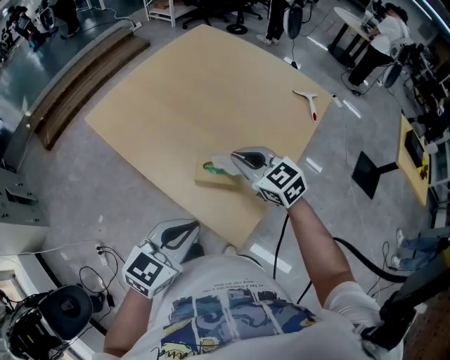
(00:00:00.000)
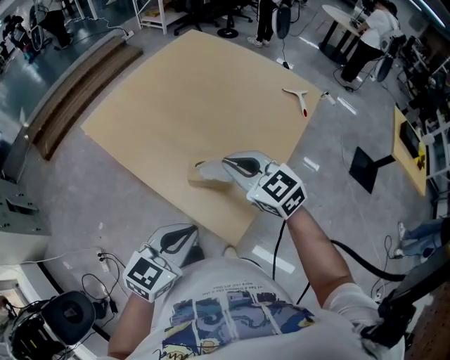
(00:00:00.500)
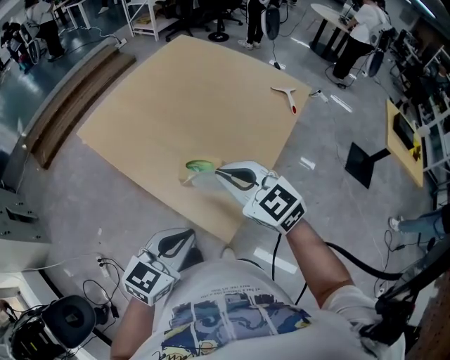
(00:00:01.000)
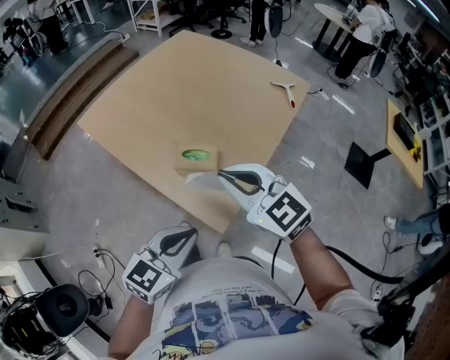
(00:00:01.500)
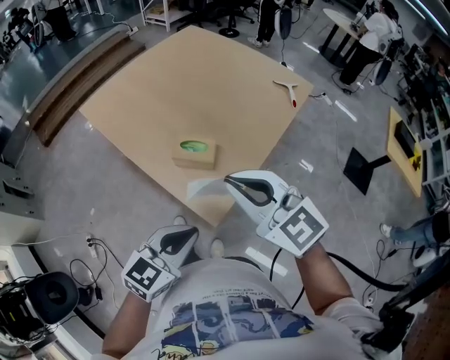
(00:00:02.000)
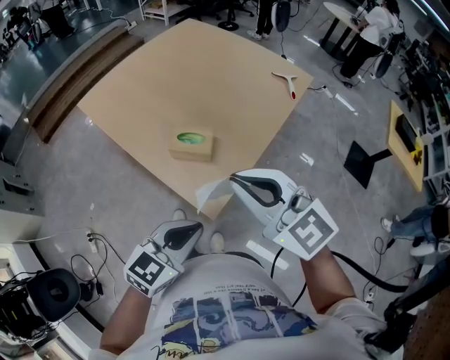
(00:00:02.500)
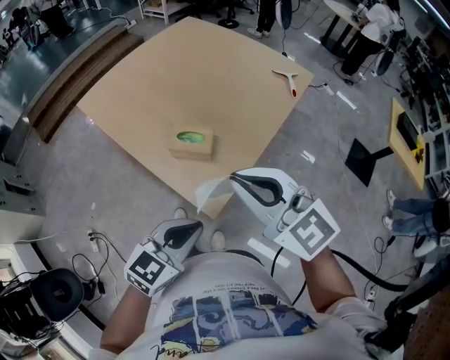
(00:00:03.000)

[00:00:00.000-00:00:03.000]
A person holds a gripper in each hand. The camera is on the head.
00:00:00.000 to 00:00:01.500: The right gripper goes some 20 cm backward and upward. Meanwhile the left gripper travels backward and to the right by about 10 cm.
00:00:01.500 to 00:00:03.000: The right gripper moves backward, roughly 5 cm.

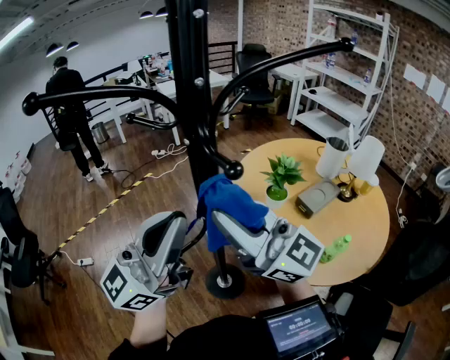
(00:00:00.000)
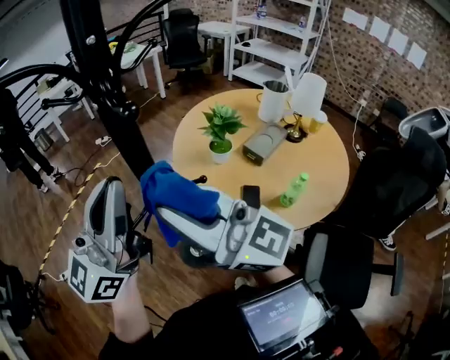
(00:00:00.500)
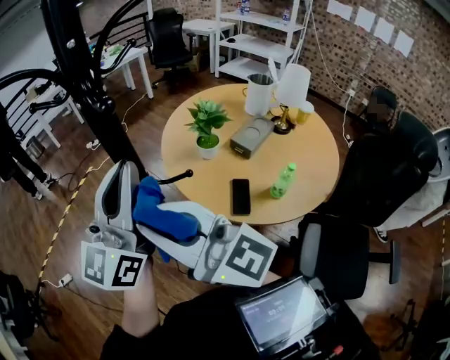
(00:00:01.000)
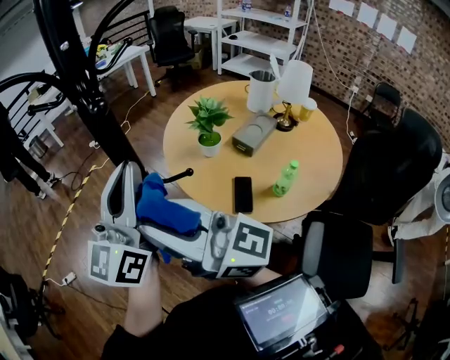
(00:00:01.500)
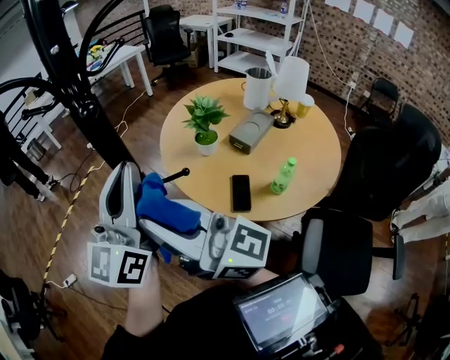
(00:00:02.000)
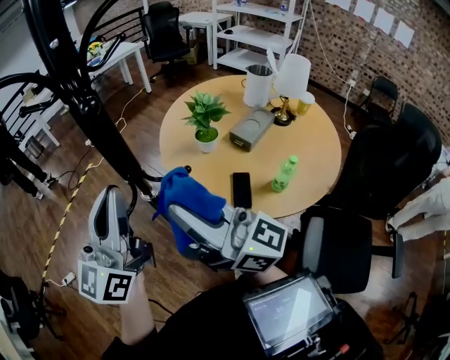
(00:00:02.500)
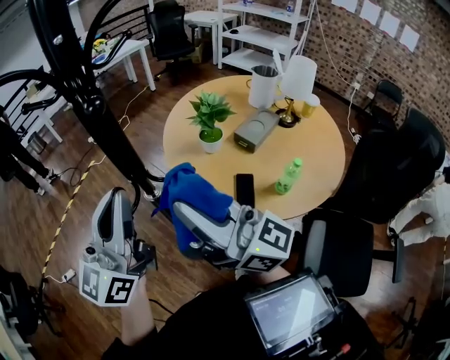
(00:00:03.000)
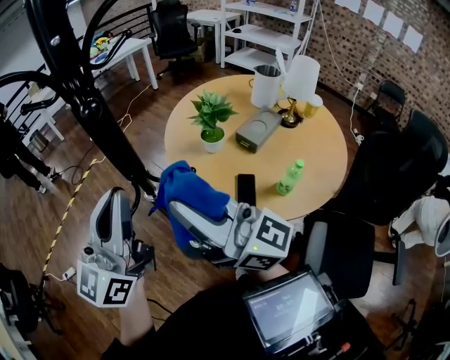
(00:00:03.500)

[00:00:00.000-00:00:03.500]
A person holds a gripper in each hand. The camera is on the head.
00:00:00.000 to 00:00:02.000: The left gripper travels downward and to the right by some 10 cm. The right gripper heads backward, covering approximately 10 cm.
00:00:02.000 to 00:00:03.500: The right gripper moves roughly 5 cm. Meanwhile the left gripper moves about 5 cm.

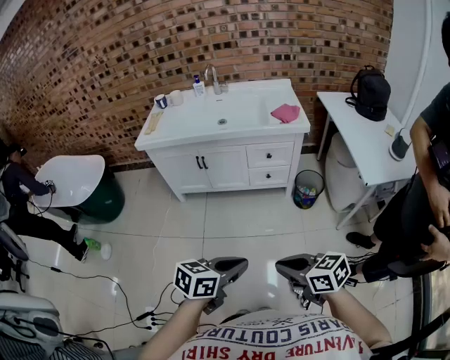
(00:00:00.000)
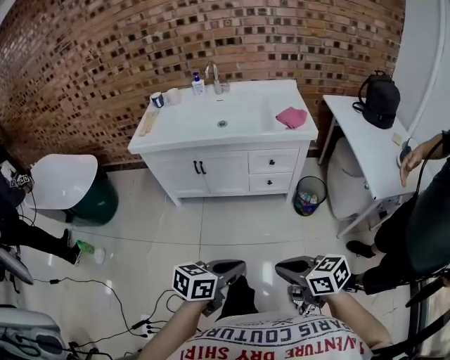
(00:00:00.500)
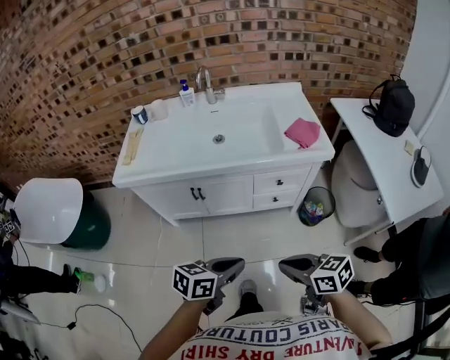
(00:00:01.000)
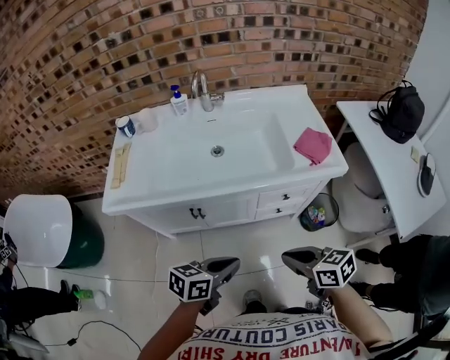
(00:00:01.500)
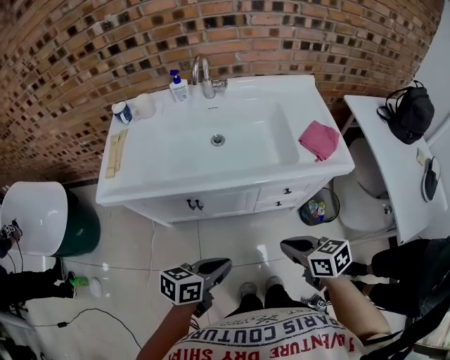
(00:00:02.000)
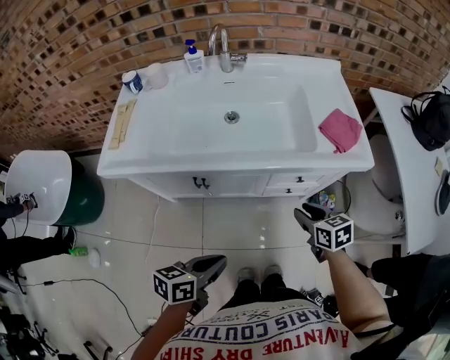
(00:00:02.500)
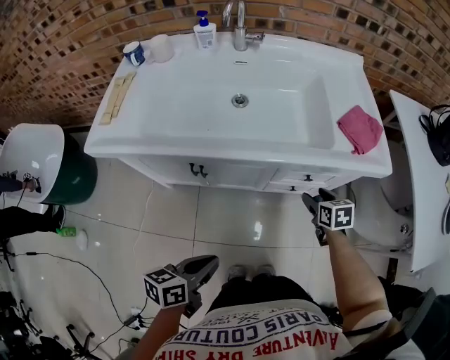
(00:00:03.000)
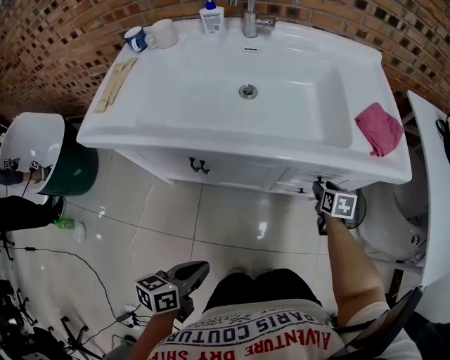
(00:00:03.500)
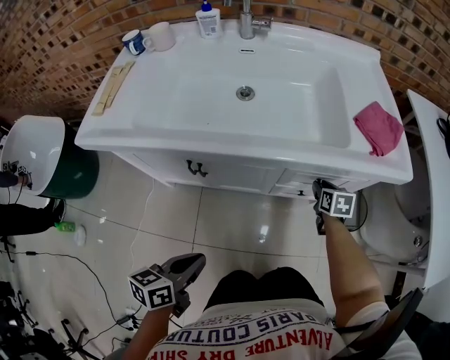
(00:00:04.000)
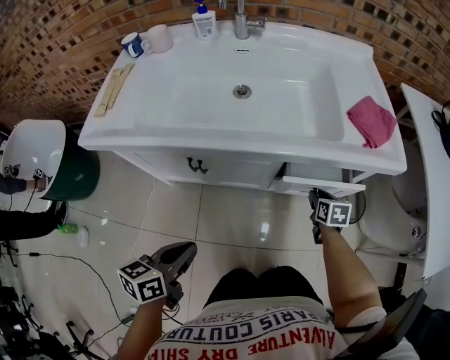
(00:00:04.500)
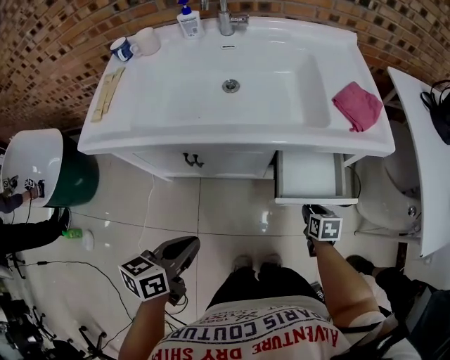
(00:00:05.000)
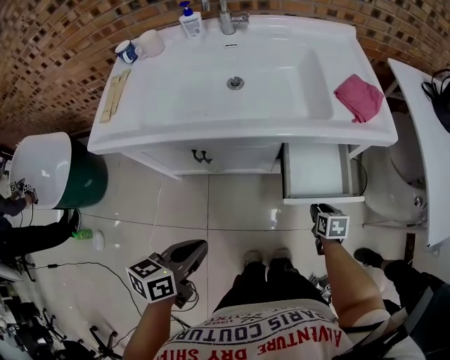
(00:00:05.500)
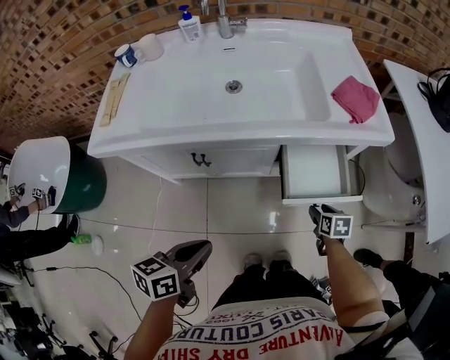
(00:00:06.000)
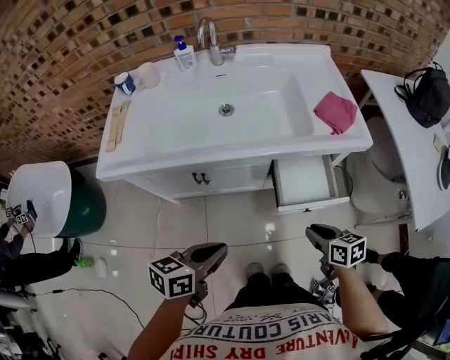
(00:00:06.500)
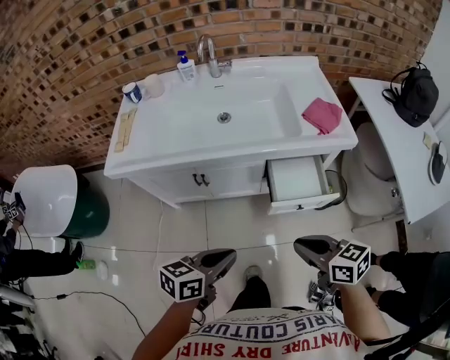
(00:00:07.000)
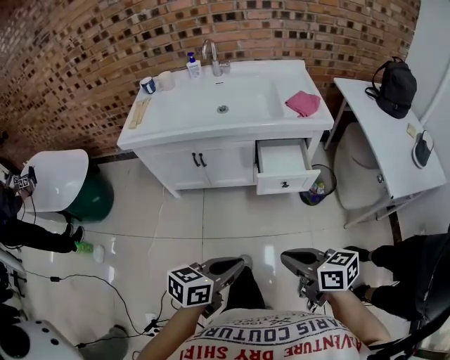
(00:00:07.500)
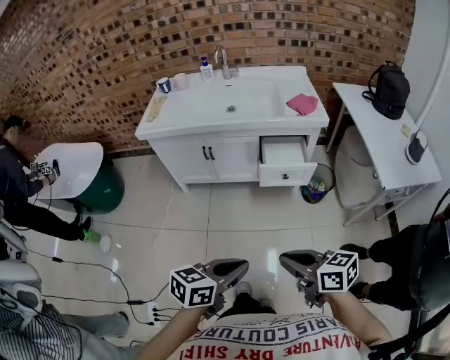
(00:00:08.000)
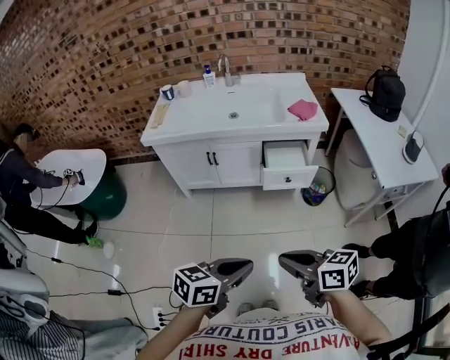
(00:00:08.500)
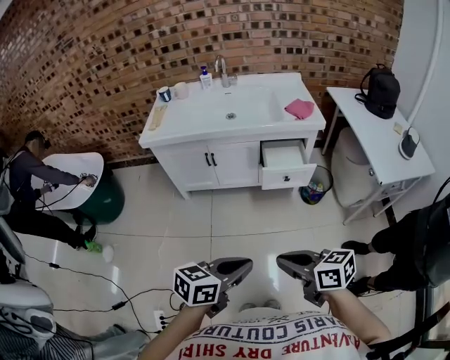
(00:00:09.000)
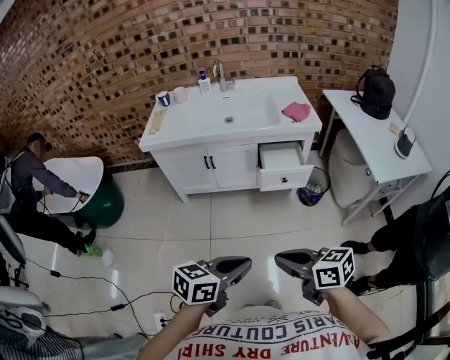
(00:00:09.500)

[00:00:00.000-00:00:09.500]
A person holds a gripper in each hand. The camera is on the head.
00:00:00.000 to 00:00:02.000: The pair of grippers is taken forward, about 50 cm.
00:00:02.000 to 00:00:04.000: The left gripper goes roughly 15 cm downward, and turns by approximately 20 degrees; the right gripper goes roughly 40 cm downward and forward, turns by approximately 30 degrees, and opens its fingers.
00:00:04.000 to 00:00:05.500: The right gripper is displaced backward by roughly 20 cm, while the left gripper moves upward, some 10 cm.
00:00:05.500 to 00:00:07.500: The right gripper heads backward and upward, covering roughly 50 cm, points its fingers approximately 40 degrees further upward, and closes. Meanwhile the left gripper is displaced backward, to the right and upward by approximately 30 cm.
00:00:07.500 to 00:00:09.500: The two grippers go roughly 15 cm backward and upward.

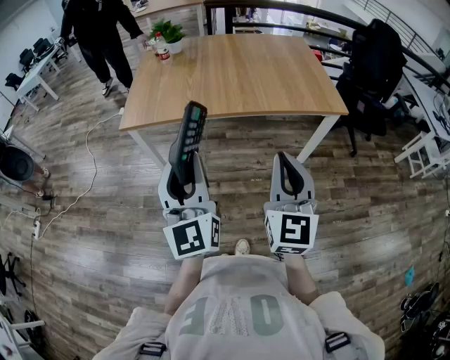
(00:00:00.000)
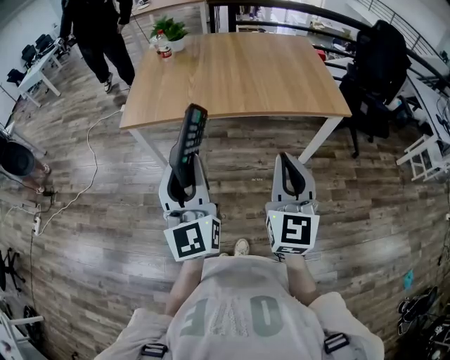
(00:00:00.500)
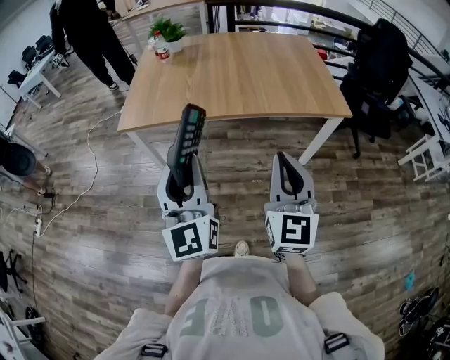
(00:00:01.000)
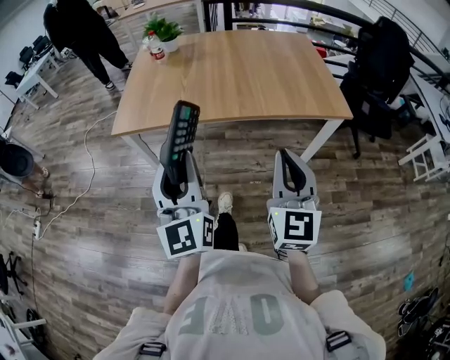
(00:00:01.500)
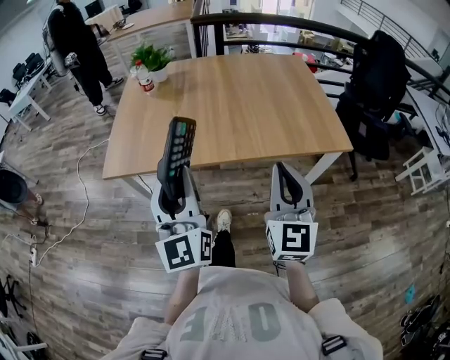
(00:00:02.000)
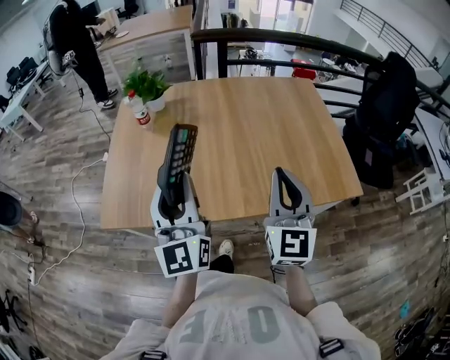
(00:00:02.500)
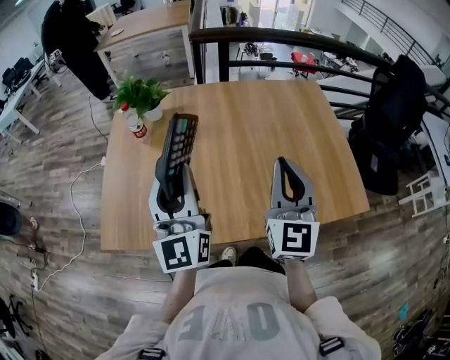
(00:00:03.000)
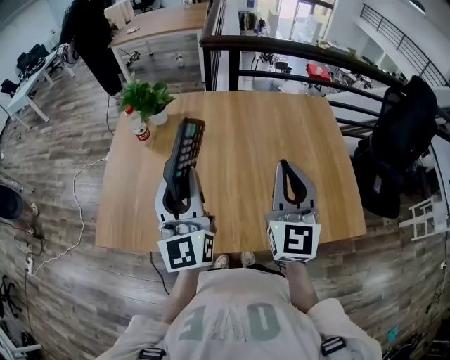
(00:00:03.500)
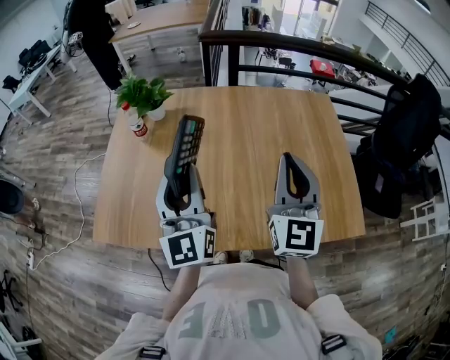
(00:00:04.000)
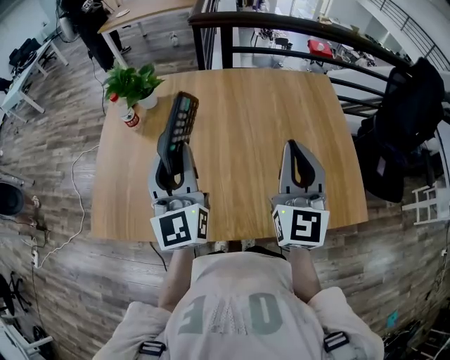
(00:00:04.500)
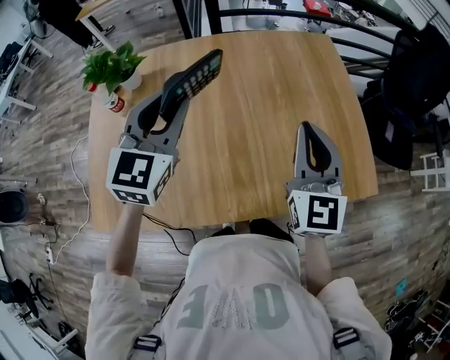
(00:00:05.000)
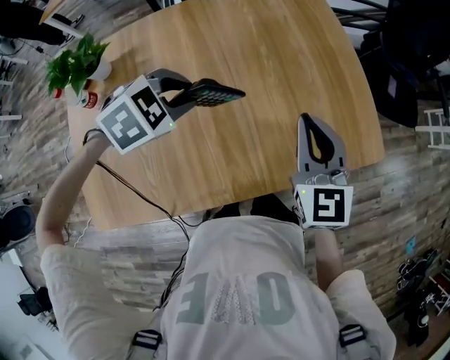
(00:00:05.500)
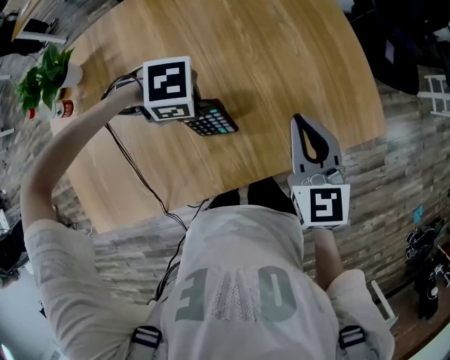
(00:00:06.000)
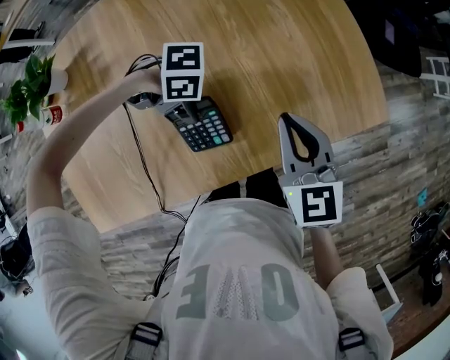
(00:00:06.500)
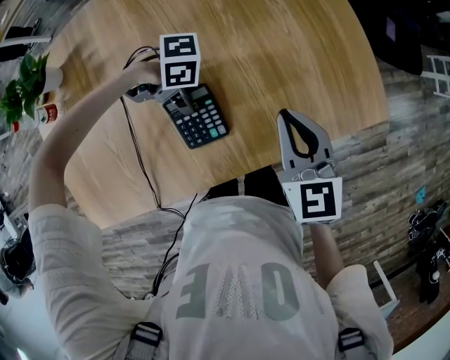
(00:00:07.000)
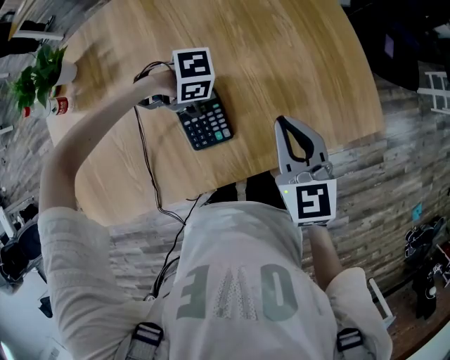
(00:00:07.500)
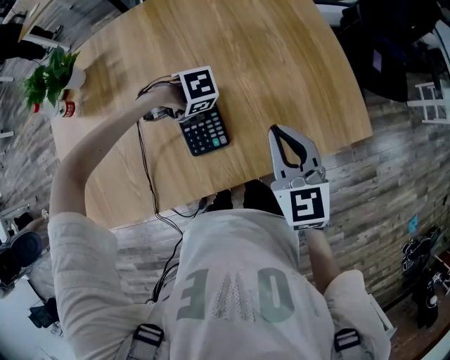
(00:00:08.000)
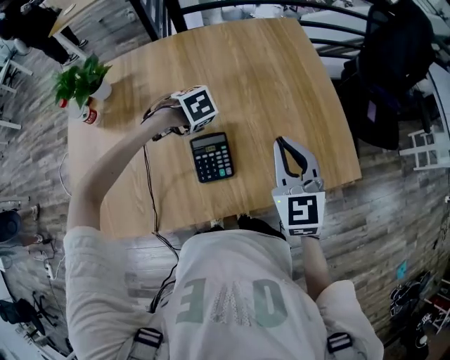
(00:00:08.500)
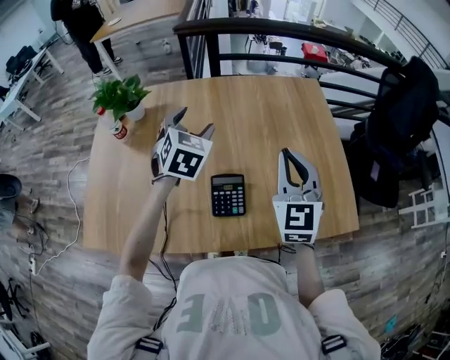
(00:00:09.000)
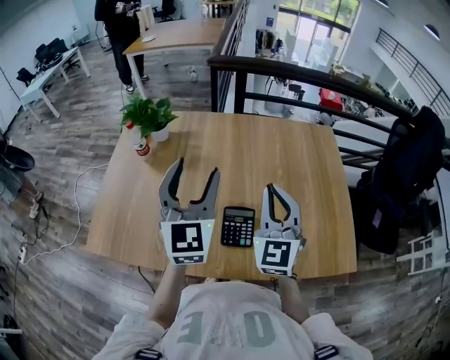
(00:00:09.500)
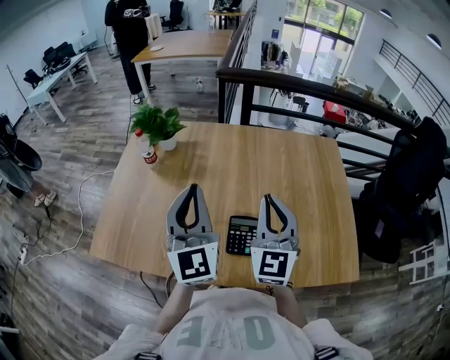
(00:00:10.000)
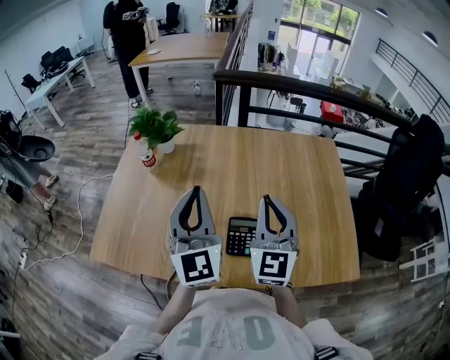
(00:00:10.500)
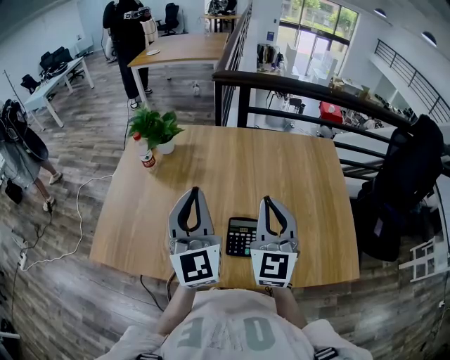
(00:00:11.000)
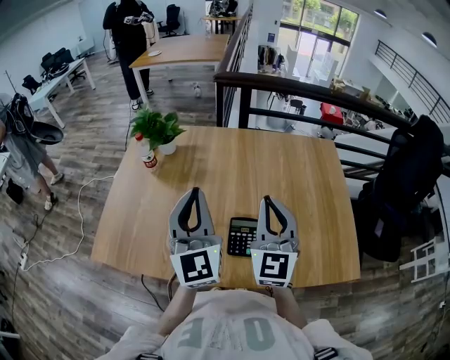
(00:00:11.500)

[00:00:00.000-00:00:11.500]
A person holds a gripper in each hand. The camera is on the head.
00:00:00.000 to 00:00:02.000: Both grippers move forward, about 20 cm.
00:00:02.000 to 00:00:04.000: Both grippers move forward, roughly 35 cm.
00:00:04.000 to 00:00:06.000: The left gripper travels downward by roughly 25 cm, and angles its fingers downward, by roughly 80 degrees. Meanwhile the right gripper is displaced downward by roughly 20 cm, and tilts its fingers approximately 30 degrees downward.
00:00:06.000 to 00:00:07.500: The left gripper goes approximately 10 cm downward.
00:00:07.500 to 00:00:09.500: The right gripper heads upward, covering about 15 cm, and turns by roughly 30 degrees. The left gripper travels upward by about 35 cm, and tips its fingers upward by approximately 60 degrees.
00:00:09.500 to 00:00:11.500: The left gripper shifts by approximately 5 cm, and closes.
